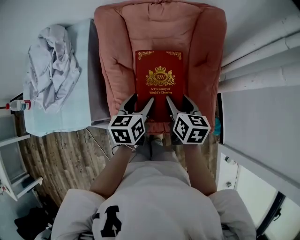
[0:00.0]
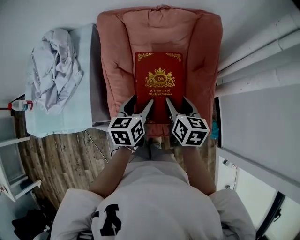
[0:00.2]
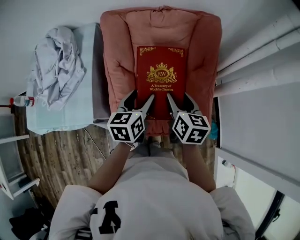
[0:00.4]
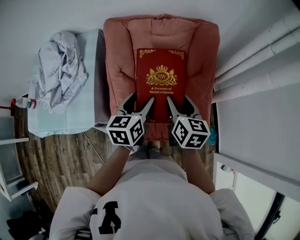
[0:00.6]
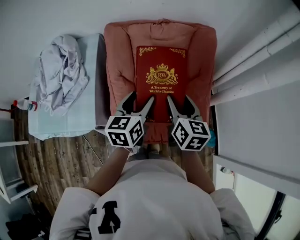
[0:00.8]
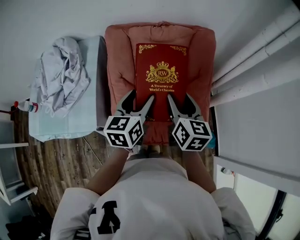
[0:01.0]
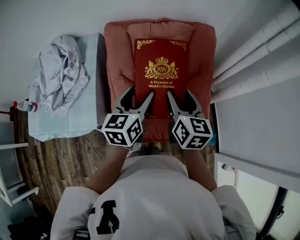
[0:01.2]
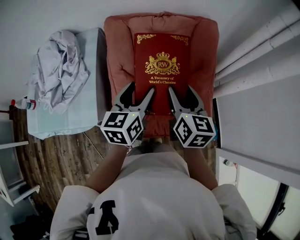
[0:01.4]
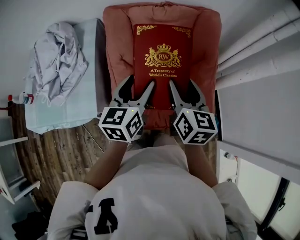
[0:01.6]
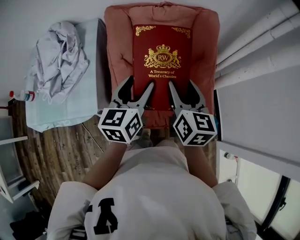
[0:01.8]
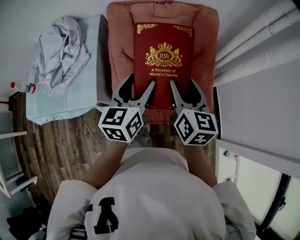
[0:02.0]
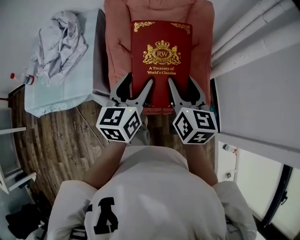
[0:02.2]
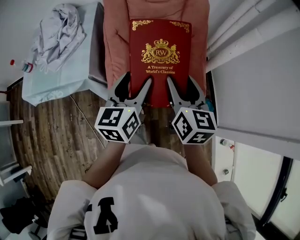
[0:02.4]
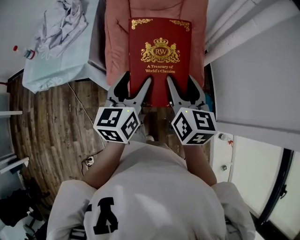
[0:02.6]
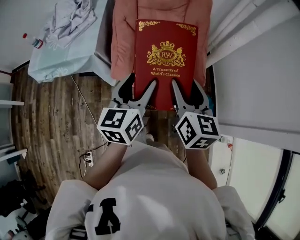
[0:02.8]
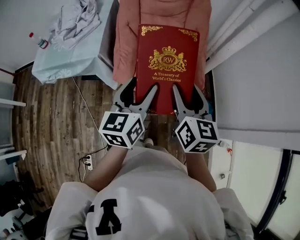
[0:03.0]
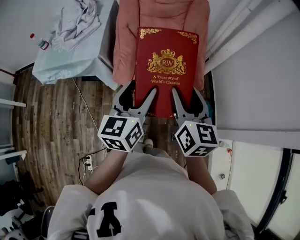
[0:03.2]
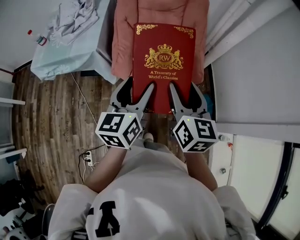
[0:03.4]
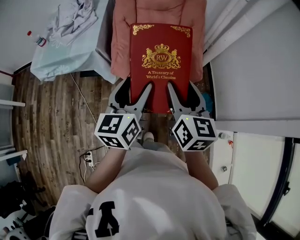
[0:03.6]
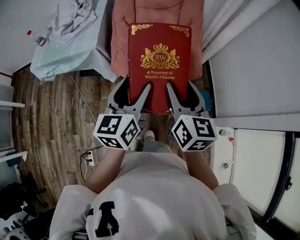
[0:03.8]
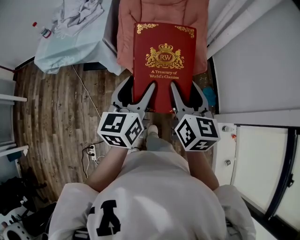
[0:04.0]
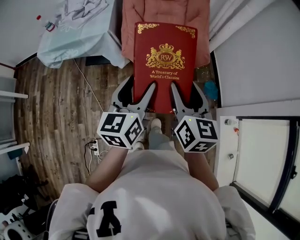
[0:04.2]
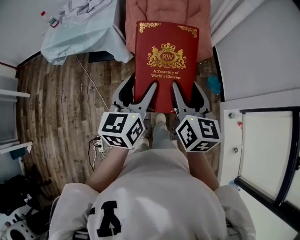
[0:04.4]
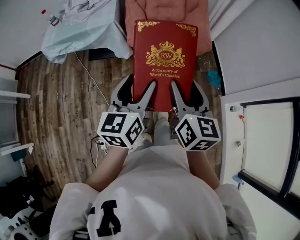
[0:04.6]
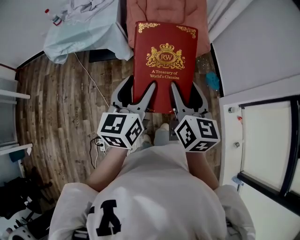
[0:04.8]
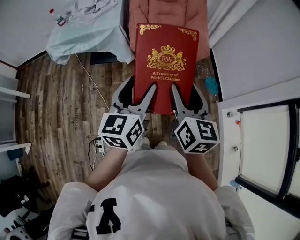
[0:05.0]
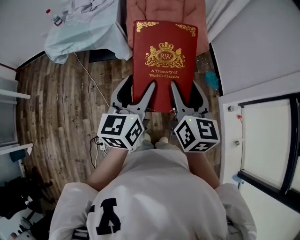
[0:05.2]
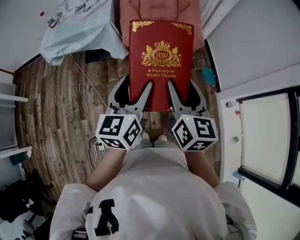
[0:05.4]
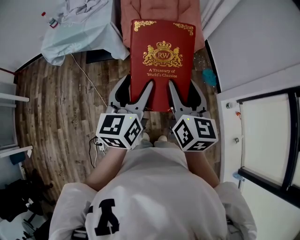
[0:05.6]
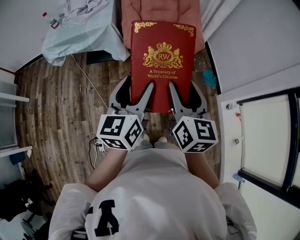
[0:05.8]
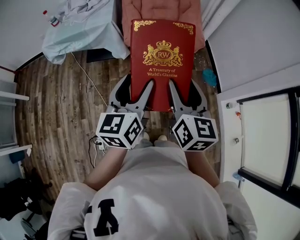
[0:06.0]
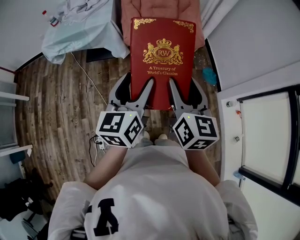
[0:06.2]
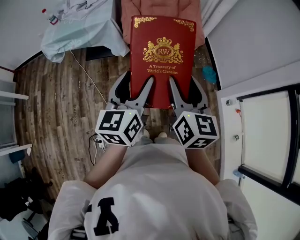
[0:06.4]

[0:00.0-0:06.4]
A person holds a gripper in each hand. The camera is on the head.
0:00.0 to 0:01.6: Both grippers travel together upward, about 15 cm.
0:01.6 to 0:03.2: Both grippers travel together backward, approximately 35 cm.
0:03.2 to 0:04.8: Both grippers move backward, approximately 25 cm.
0:04.8 to 0:06.4: The grippers move only a little.

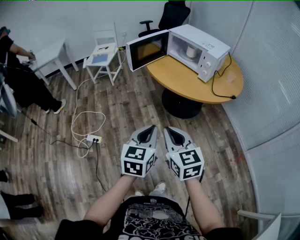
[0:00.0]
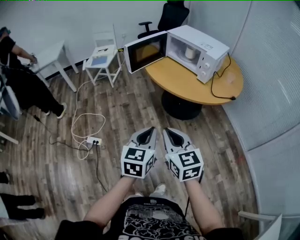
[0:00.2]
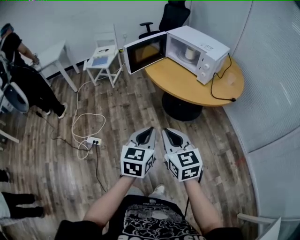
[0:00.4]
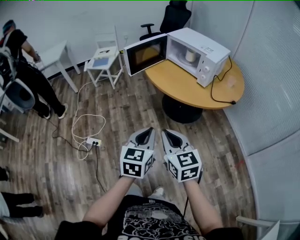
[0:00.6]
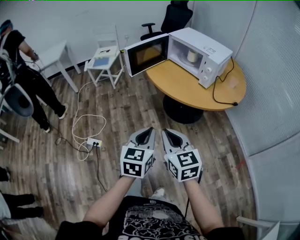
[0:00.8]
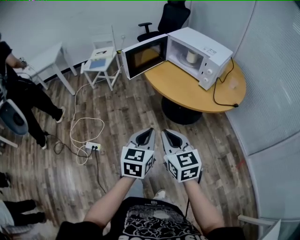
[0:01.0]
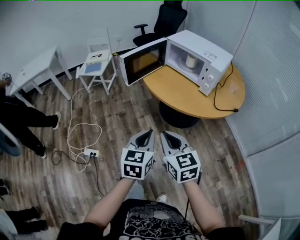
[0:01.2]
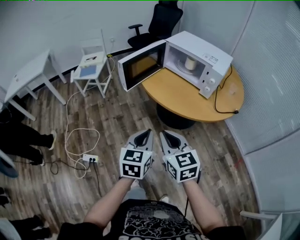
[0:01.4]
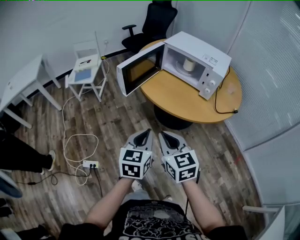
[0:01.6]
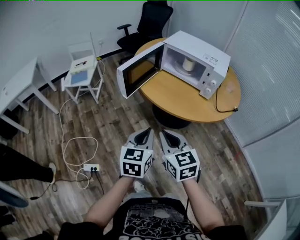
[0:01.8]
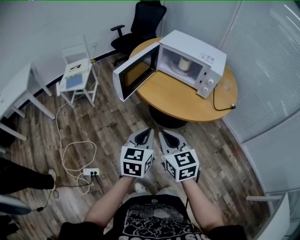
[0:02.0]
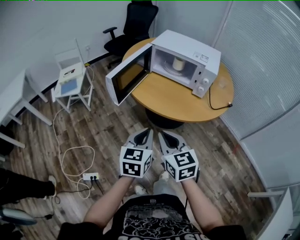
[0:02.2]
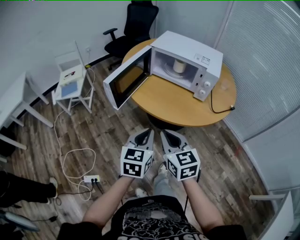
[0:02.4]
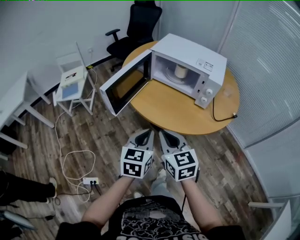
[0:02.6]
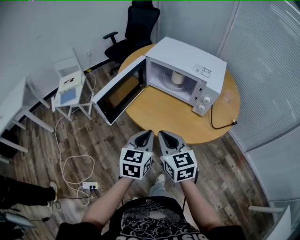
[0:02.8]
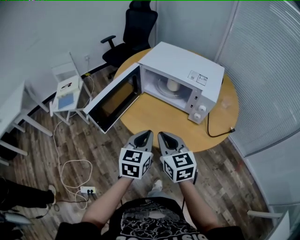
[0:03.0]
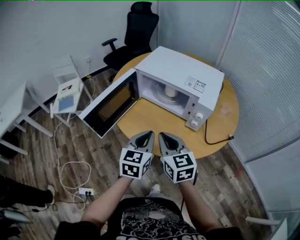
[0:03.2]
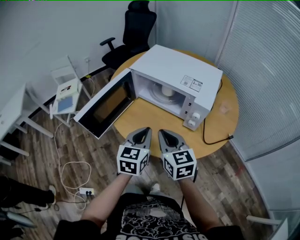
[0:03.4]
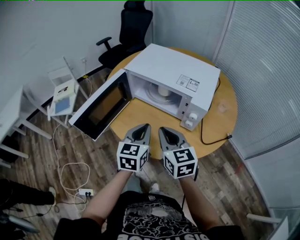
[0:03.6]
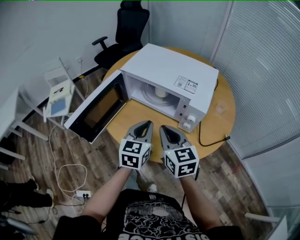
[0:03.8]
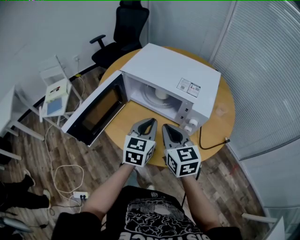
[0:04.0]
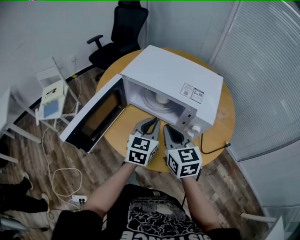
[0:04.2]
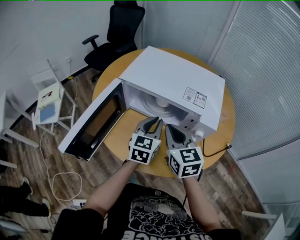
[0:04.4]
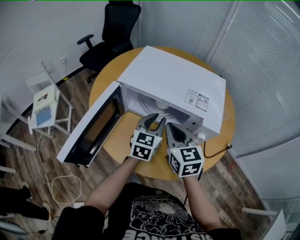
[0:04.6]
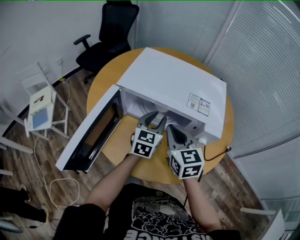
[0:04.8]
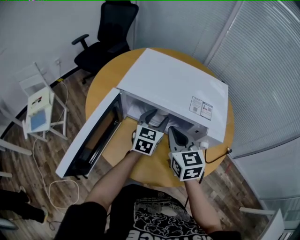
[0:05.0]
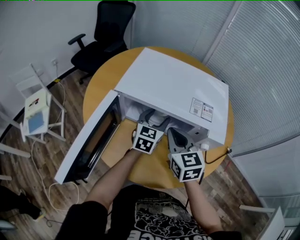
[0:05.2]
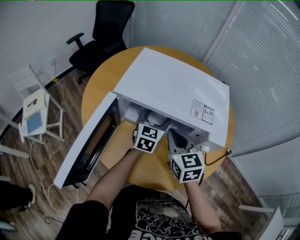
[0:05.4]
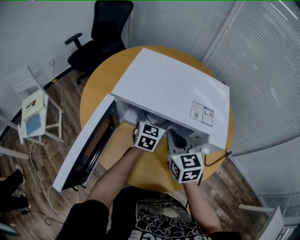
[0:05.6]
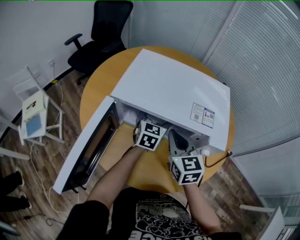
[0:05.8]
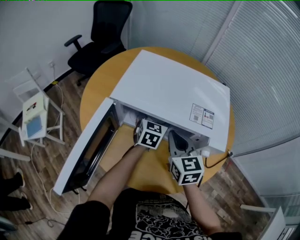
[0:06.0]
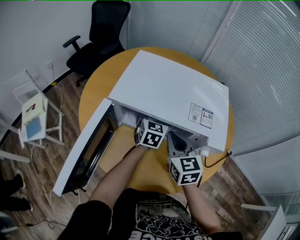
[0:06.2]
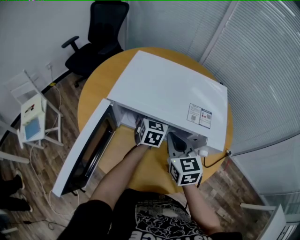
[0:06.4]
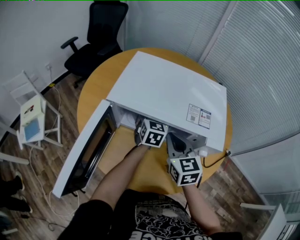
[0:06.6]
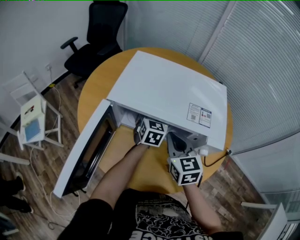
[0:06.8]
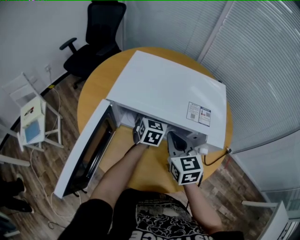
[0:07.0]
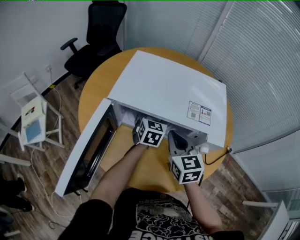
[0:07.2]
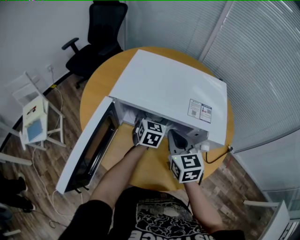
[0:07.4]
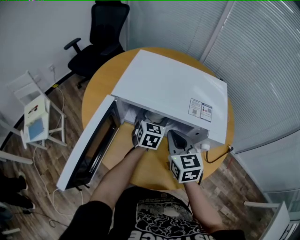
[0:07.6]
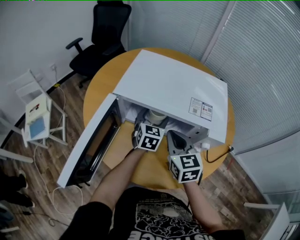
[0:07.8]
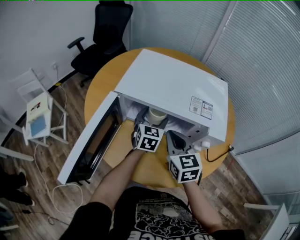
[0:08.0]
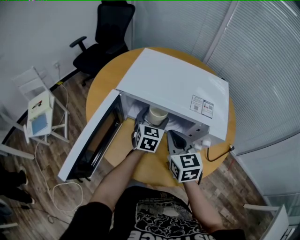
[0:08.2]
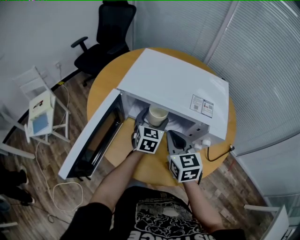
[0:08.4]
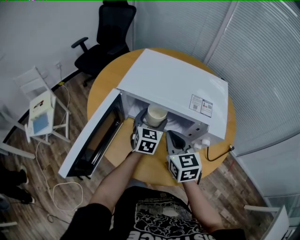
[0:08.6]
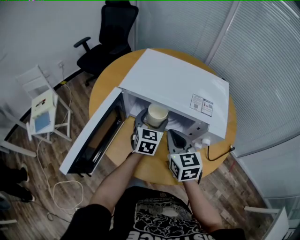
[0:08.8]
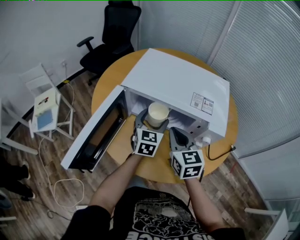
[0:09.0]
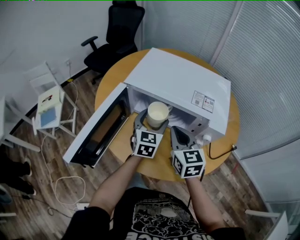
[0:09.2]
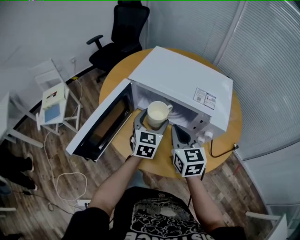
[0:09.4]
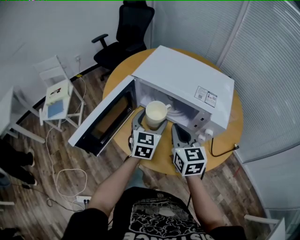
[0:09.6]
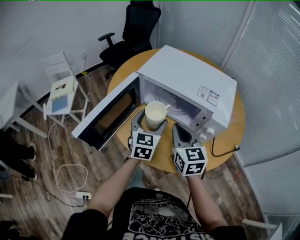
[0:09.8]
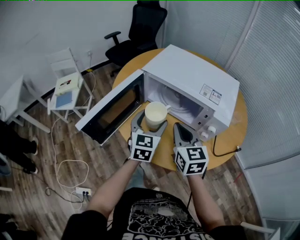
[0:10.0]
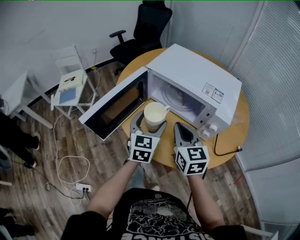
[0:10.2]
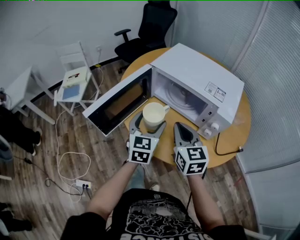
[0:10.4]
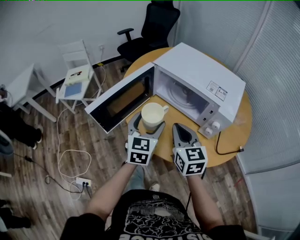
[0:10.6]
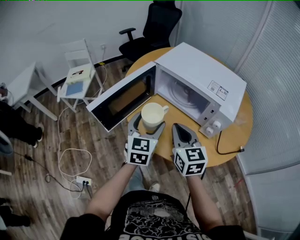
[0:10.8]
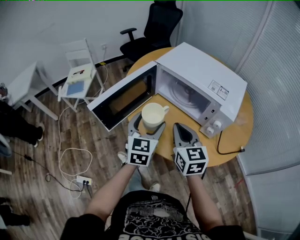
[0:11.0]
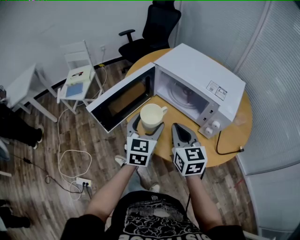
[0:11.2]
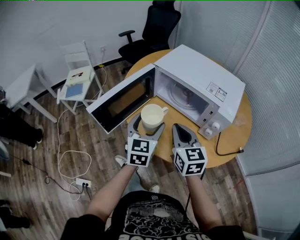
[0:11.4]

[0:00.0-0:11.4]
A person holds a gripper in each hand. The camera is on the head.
0:00.0 to 0:01.4: Both grippers travel together forward, approximately 20 cm.
0:01.4 to 0:02.8: The two grippers go roughly 20 cm forward.
0:02.8 to 0:04.2: Both grippers travel together forward and to the right, about 25 cm.
0:04.2 to 0:05.6: The right gripper travels forward by approximately 10 cm, while the left gripper heads forward, covering approximately 20 cm, and opens its fingers.
0:05.6 to 0:07.2: The grippers stay close to where they were, moving slightly.
0:07.2 to 0:08.6: The left gripper is displaced backward by approximately 5 cm.
0:08.6 to 0:10.0: The left gripper travels backward, to the left and upward by roughly 15 cm, while the right gripper moves backward, some 5 cm.
0:10.0 to 0:11.4: The right gripper moves about 5 cm. The left gripper shifts approximately 5 cm backward.

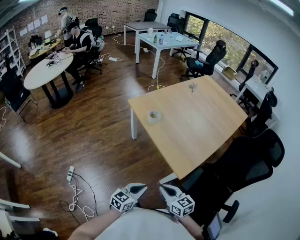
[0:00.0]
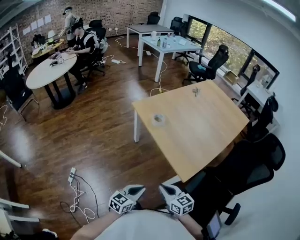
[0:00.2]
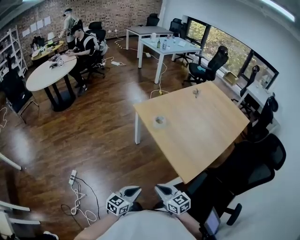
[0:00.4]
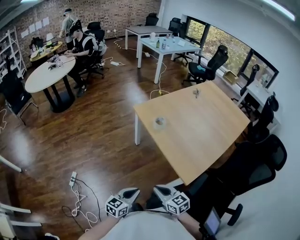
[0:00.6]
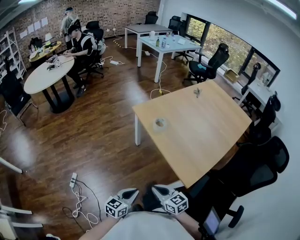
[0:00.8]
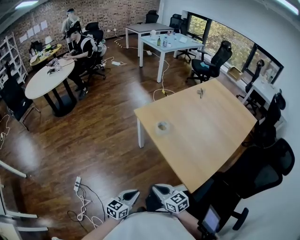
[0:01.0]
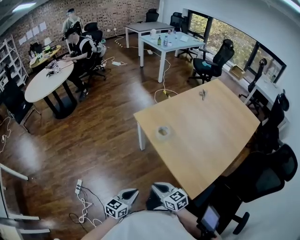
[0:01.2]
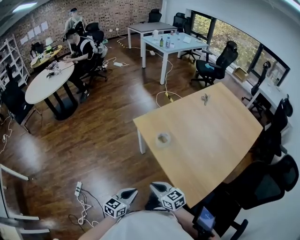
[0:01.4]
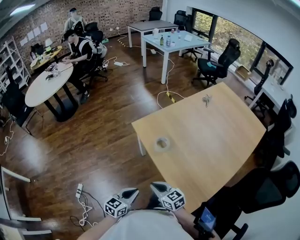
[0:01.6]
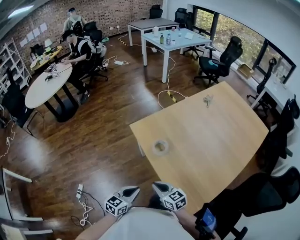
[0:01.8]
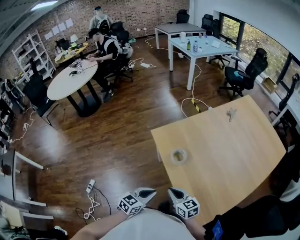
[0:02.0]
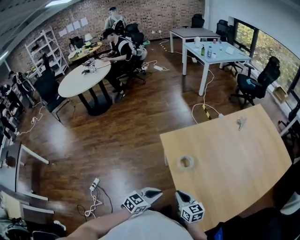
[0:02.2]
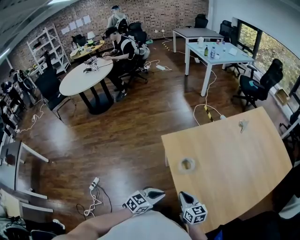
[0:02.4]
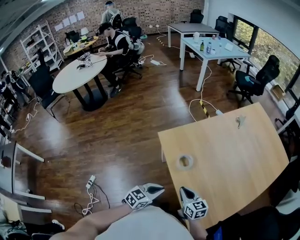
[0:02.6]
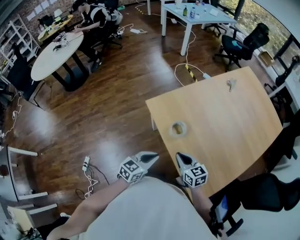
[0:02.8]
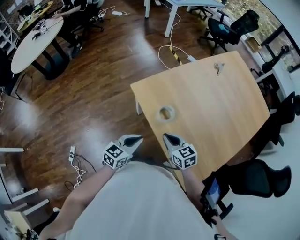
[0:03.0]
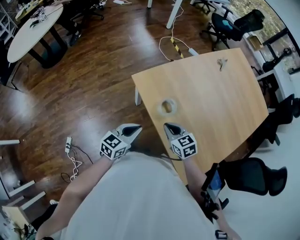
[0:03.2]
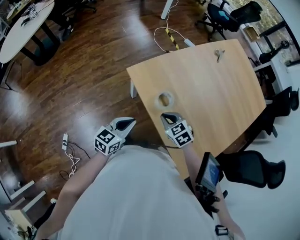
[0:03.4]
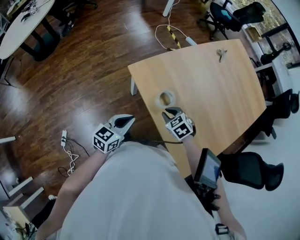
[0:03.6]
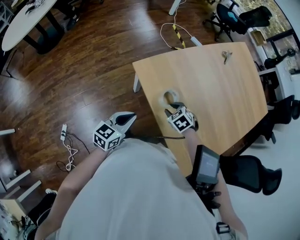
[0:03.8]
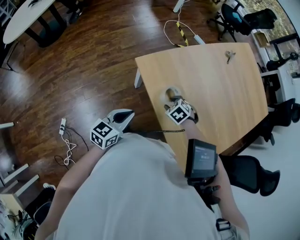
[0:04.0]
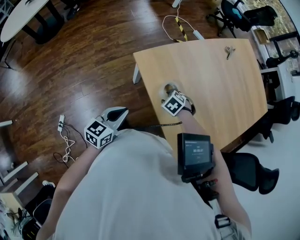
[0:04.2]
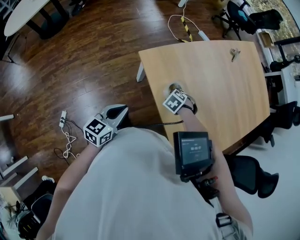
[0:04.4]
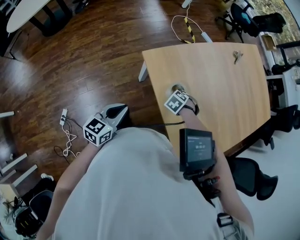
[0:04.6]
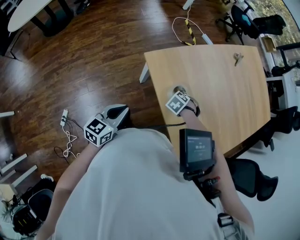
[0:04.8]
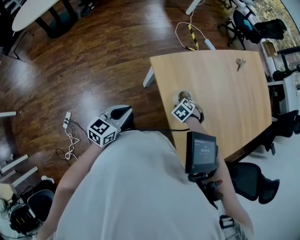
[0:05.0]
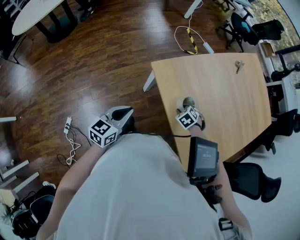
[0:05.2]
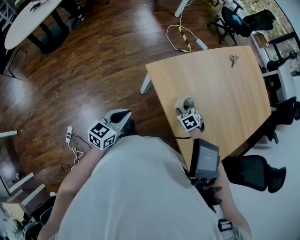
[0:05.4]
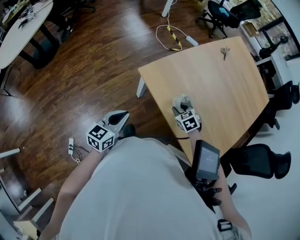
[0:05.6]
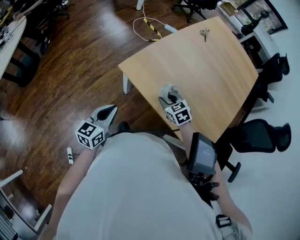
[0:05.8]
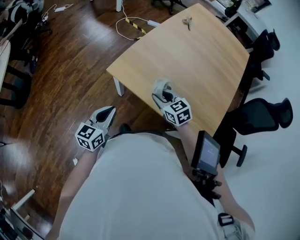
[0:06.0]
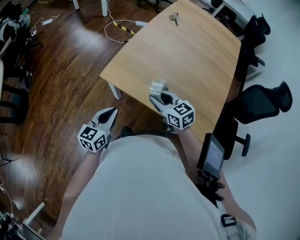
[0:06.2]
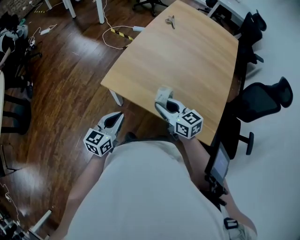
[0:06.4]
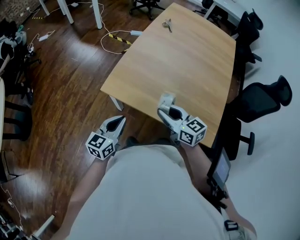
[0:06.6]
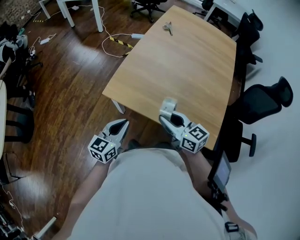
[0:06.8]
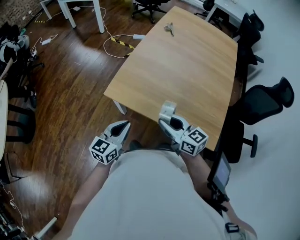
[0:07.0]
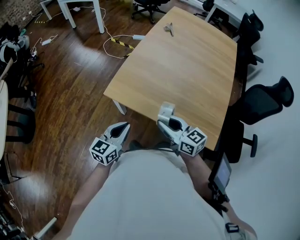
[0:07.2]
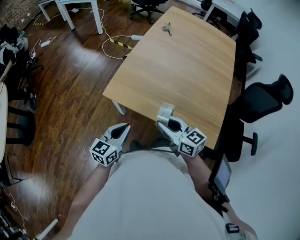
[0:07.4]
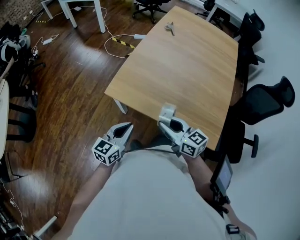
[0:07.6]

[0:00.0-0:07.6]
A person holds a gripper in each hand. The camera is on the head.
0:00.0 to 0:01.6: The grippers both shift forward by roughly 25 cm.
0:01.6 to 0:03.0: Both grippers move forward, approximately 15 cm.
0:03.0 to 0:04.6: The right gripper travels downward by roughly 15 cm, points its fingers some 50 degrees further downward, and opens its fingers. Meanwhile the left gripper shifts by about 10 cm.
0:04.6 to 0:06.0: The right gripper shifts roughly 15 cm upward, and tips its fingers upward by approximately 50 degrees, while the left gripper moves roughly 5 cm, and rotates about 20 degrees.
0:06.0 to 0:07.6: The left gripper travels to the right by some 5 cm. The right gripper moves upward and backward, approximately 10 cm, and changes its angle by about 30 degrees.
